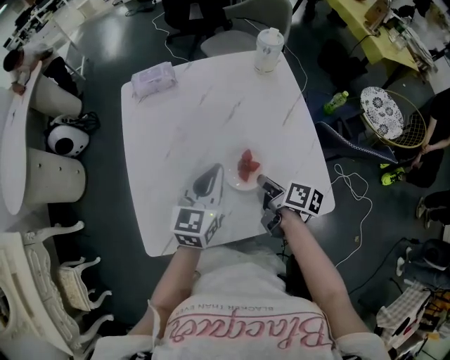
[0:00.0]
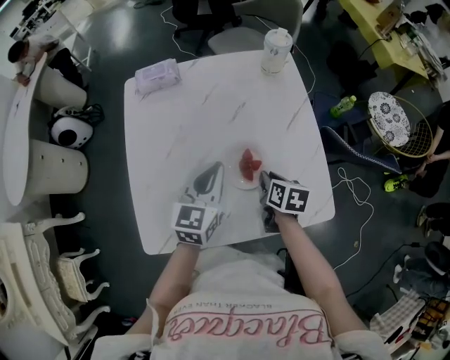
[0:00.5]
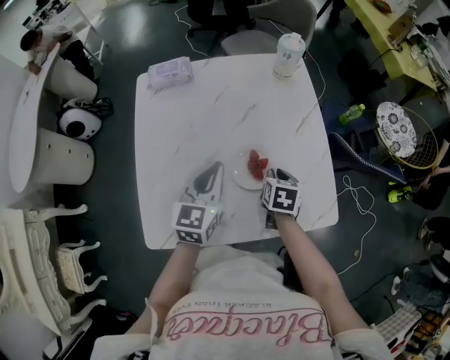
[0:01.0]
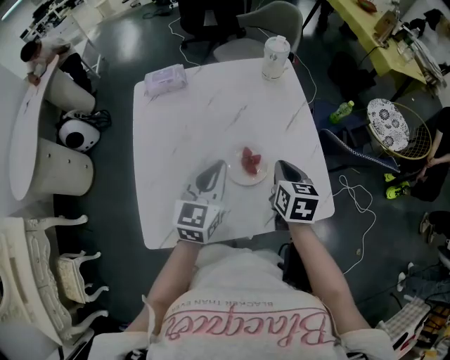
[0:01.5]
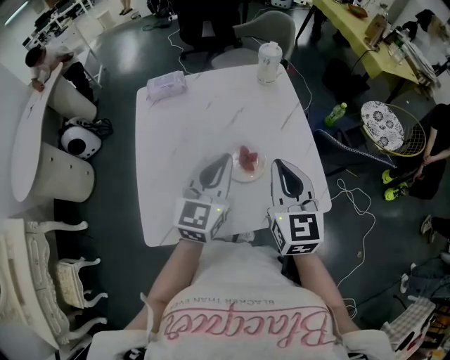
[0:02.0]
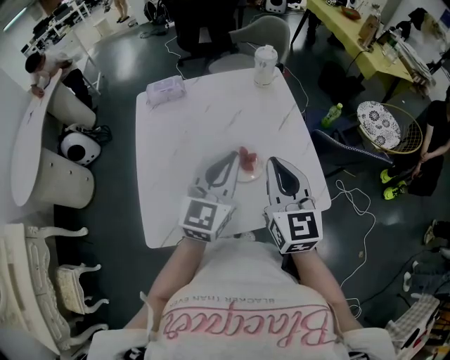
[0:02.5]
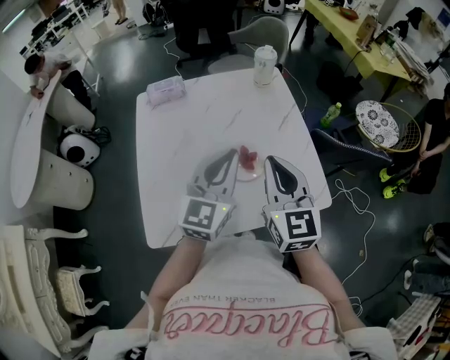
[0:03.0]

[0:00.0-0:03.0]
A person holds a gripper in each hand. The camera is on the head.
0:00.0 to 0:01.5: The right gripper moves upward, approximately 5 cm, and twists roughly 40 degrees counterclockwise, seen from behind.
0:01.5 to 0:03.0: The left gripper goes roughly 10 cm upward; the right gripper moves upward and backward, about 20 cm, and angles its fingers upward, by some 30 degrees.

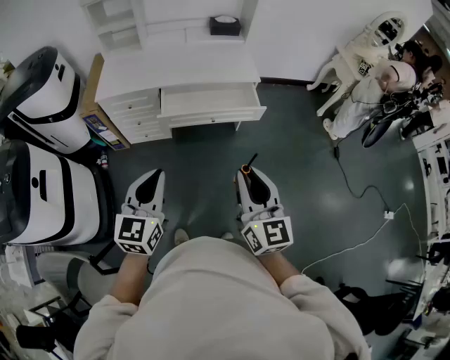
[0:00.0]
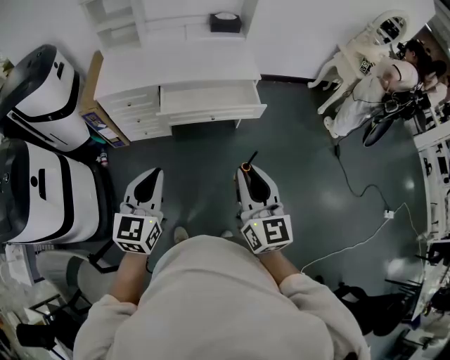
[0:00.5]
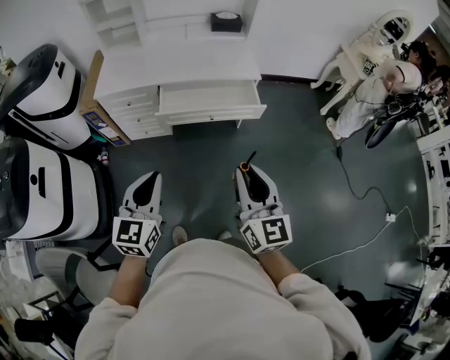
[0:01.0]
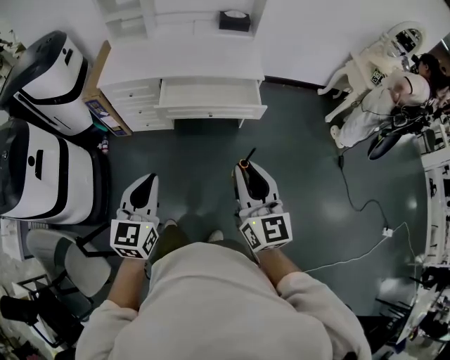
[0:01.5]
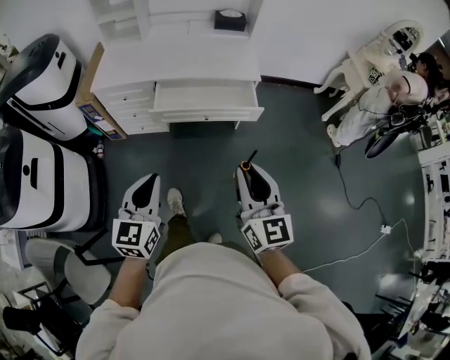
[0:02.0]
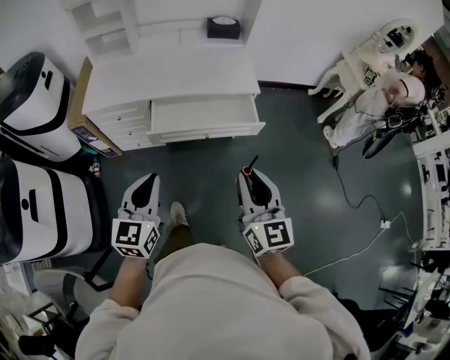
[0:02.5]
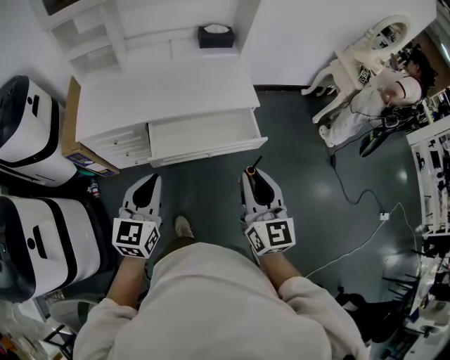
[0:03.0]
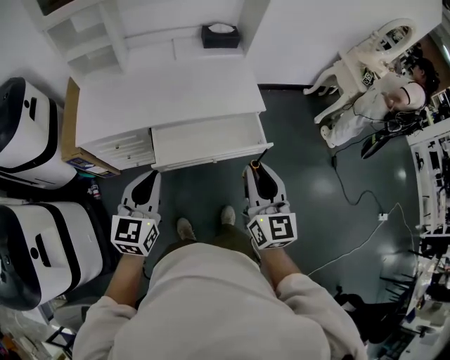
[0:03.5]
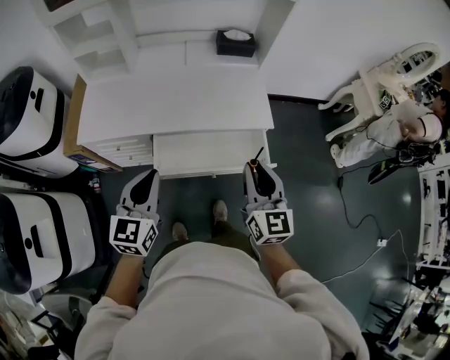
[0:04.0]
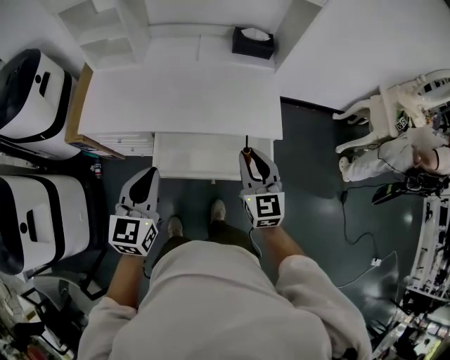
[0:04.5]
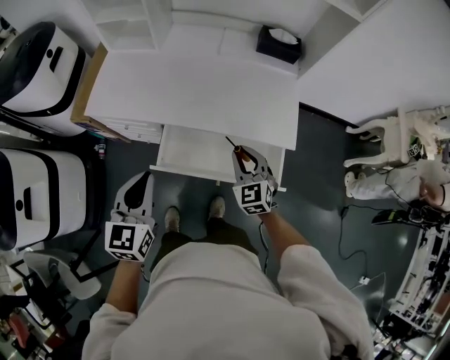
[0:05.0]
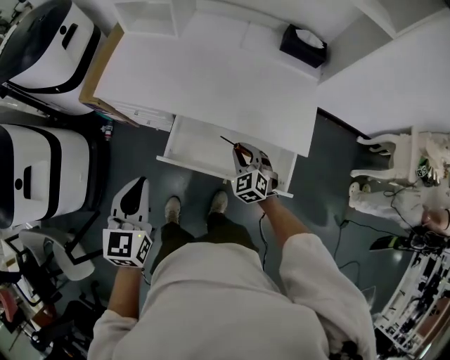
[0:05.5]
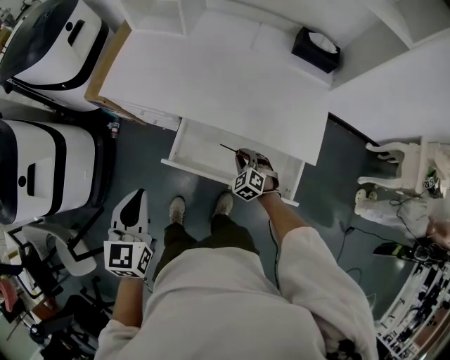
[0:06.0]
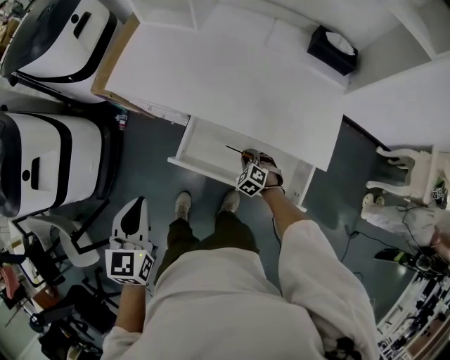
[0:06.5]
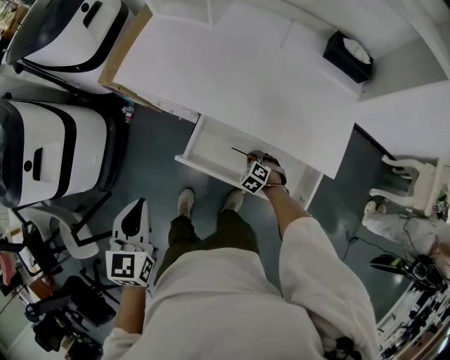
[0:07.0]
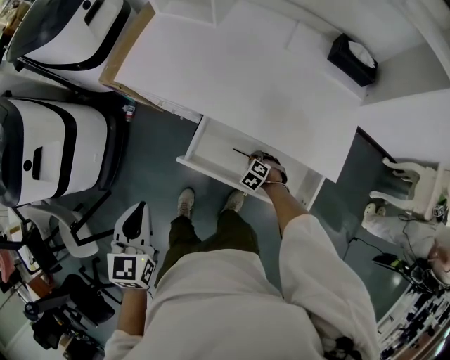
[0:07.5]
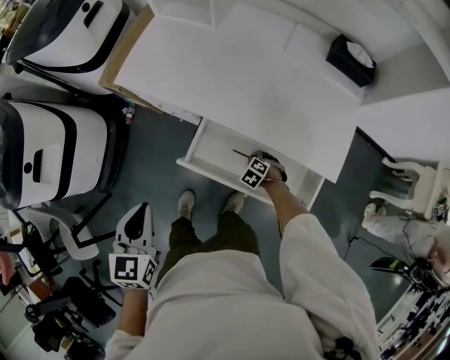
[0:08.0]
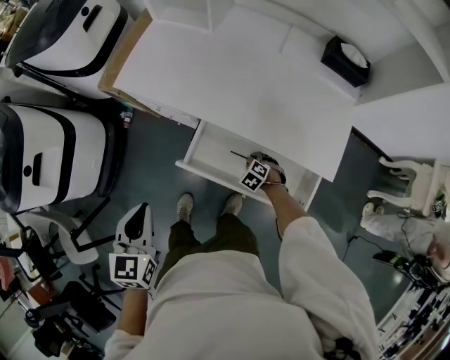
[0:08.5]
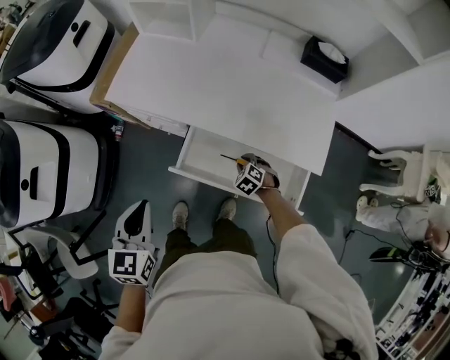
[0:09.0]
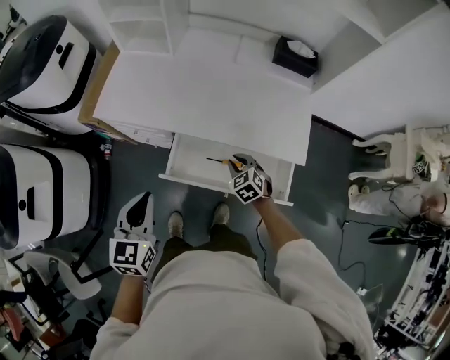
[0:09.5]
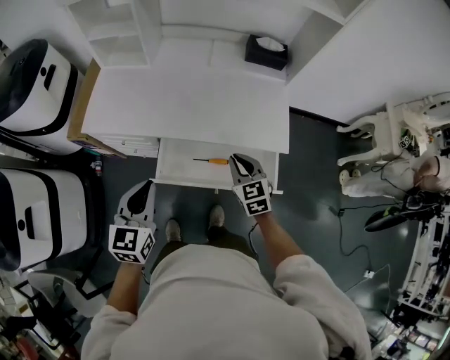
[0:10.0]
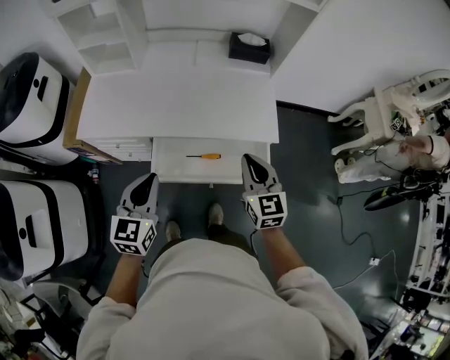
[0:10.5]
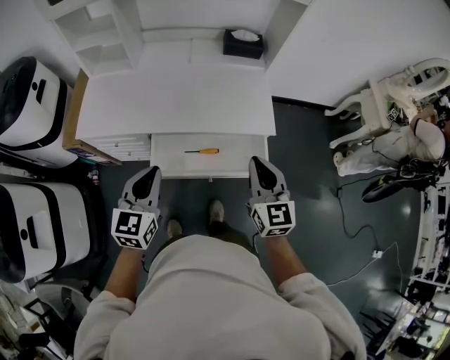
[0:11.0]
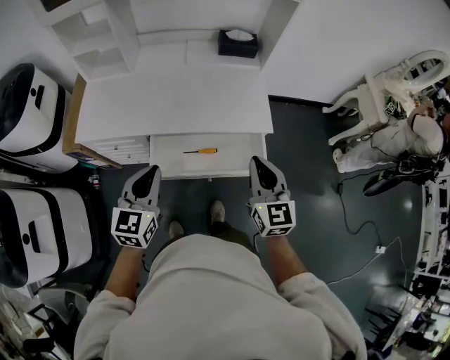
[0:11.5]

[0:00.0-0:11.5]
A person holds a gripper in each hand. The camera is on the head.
0:00.0 to 0:02.0: The left gripper ends up about 5 cm from where it was; the right gripper heads to the right, covering approximately 5 cm.
0:02.0 to 0:04.0: The two grippers go some 35 cm forward.
0:04.0 to 0:06.0: The left gripper travels downward by some 5 cm, and rotates some 30 degrees, while the right gripper shifts roughly 35 cm downward, and points its fingers approximately 50 degrees further downward.
0:06.0 to 0:07.5: The left gripper shifts by some 5 cm. The right gripper goes some 15 cm downward, and turns by some 30 degrees.
0:07.5 to 0:09.5: The left gripper shifts by approximately 5 cm. The right gripper travels upward by approximately 20 cm, and swivels some 40 degrees.
0:09.5 to 0:11.5: The right gripper is displaced upward, backward and to the right by some 35 cm, and points its fingers some 40 degrees further upward, while the left gripper goes roughly 10 cm to the right, and changes its angle by approximately 20 degrees.

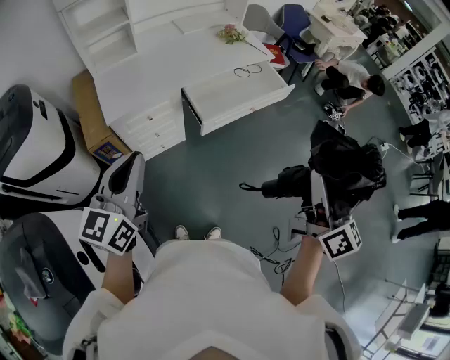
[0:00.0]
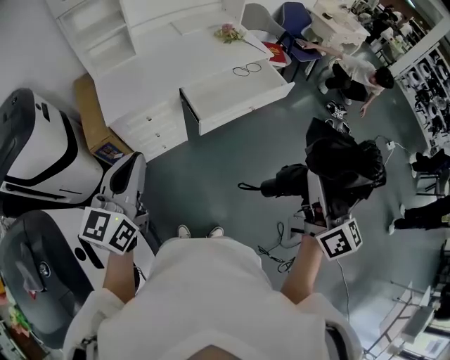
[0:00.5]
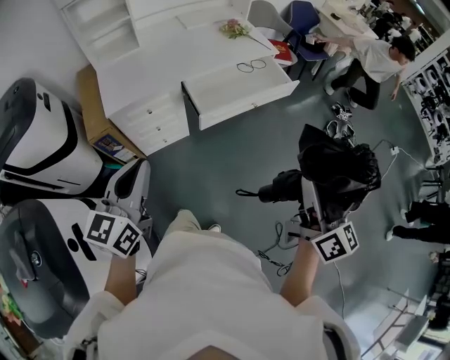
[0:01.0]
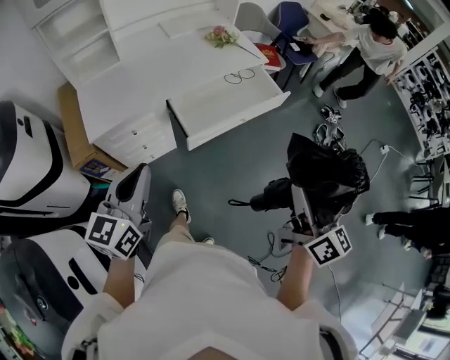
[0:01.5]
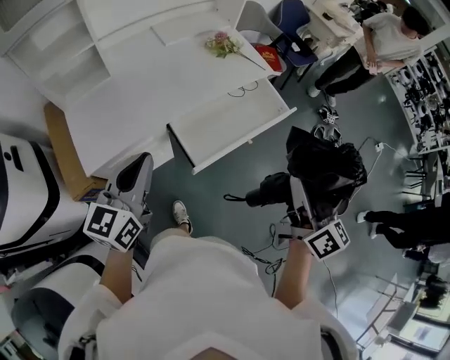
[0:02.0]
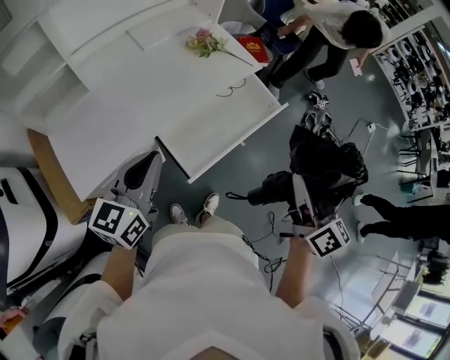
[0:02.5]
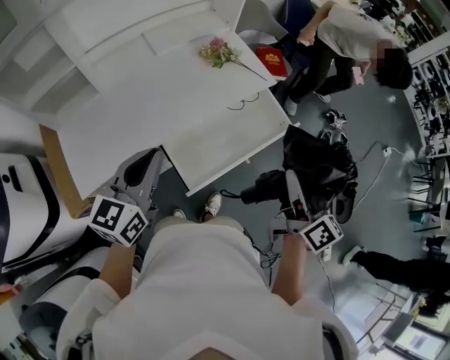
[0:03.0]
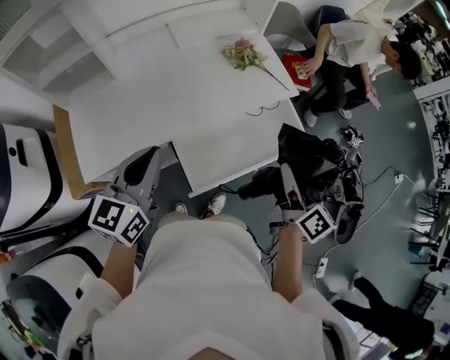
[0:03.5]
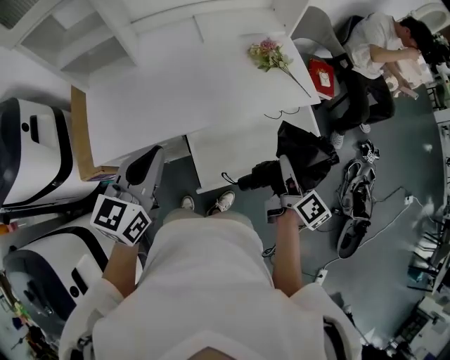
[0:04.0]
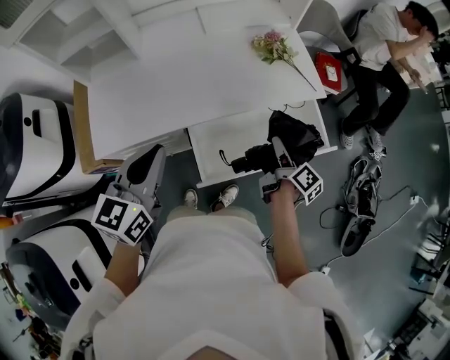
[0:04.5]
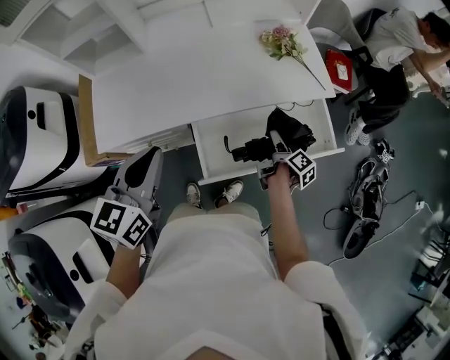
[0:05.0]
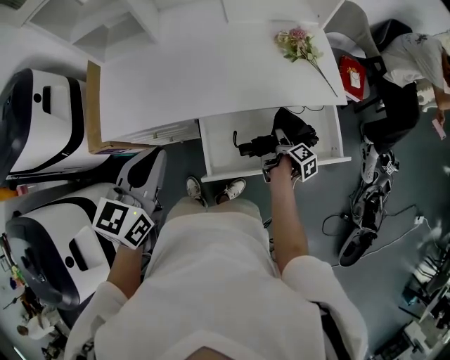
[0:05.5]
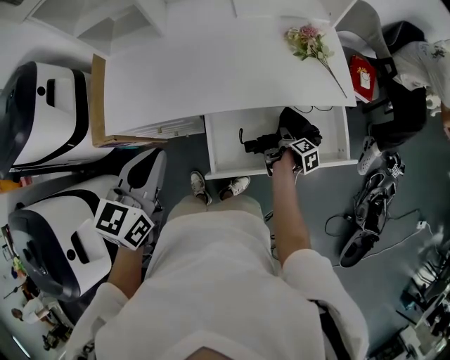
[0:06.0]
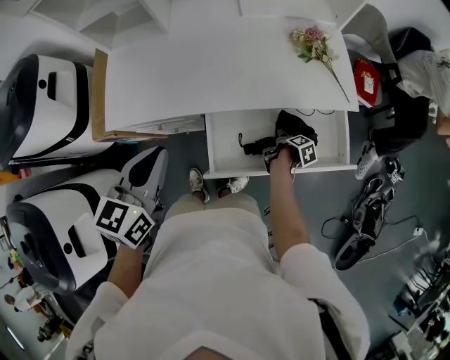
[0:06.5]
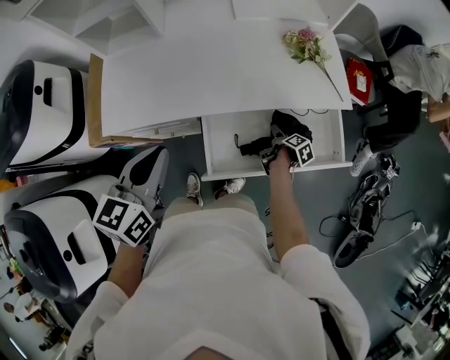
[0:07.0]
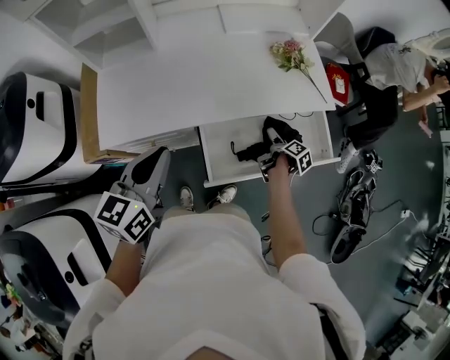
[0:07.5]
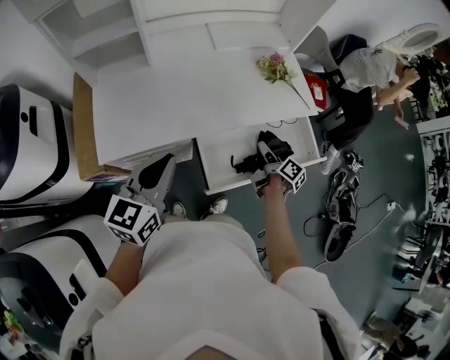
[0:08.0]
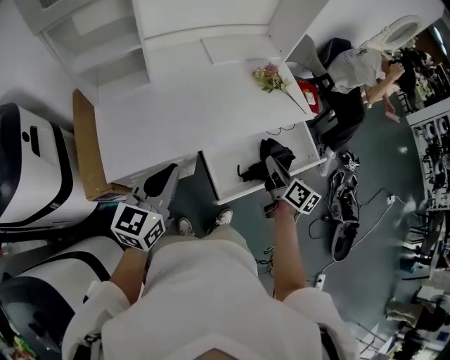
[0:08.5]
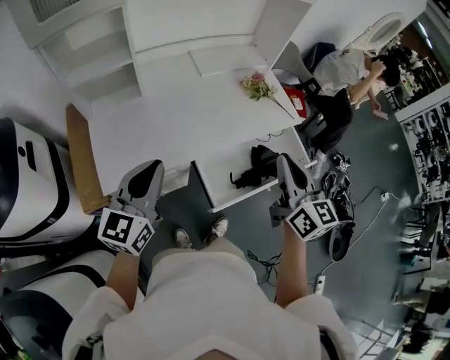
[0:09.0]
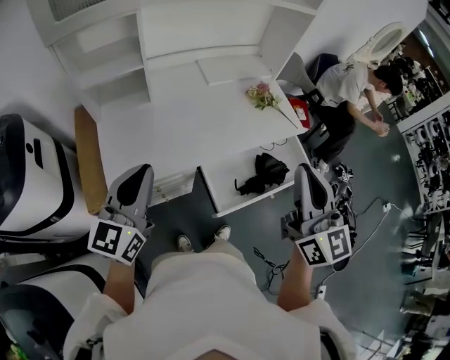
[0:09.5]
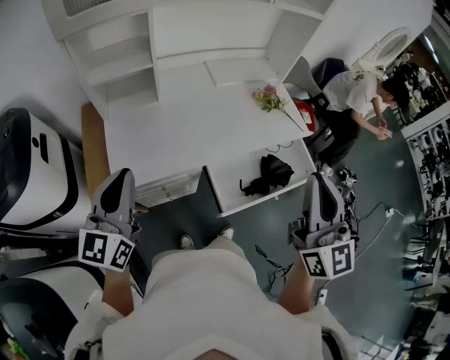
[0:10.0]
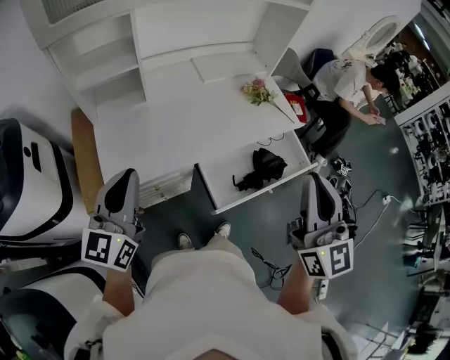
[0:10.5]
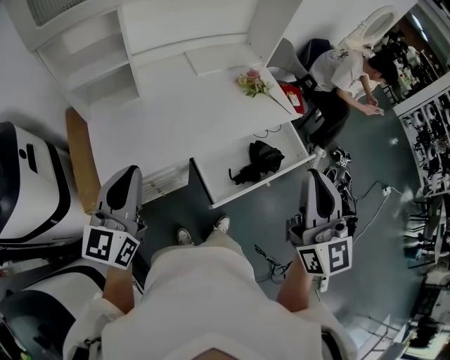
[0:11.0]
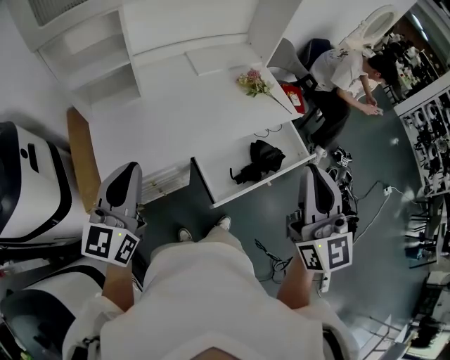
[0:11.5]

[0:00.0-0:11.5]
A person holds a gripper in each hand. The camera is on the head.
0:00.0 to 0:02.0: Both grippers move forward, some 25 cm.
0:02.0 to 0:04.0: The left gripper travels forward by about 15 cm; the right gripper goes roughly 30 cm forward and downward, and rotates approximately 30 degrees.
0:04.0 to 0:06.0: The right gripper goes about 30 cm downward, and points its fingers roughly 40 degrees further downward.
0:06.0 to 0:07.5: The right gripper goes some 5 cm upward.
0:07.5 to 0:09.5: The left gripper travels to the left and upward by about 15 cm, and turns by roughly 20 degrees; the right gripper heads upward, covering some 50 cm, tips its fingers upward by some 50 degrees, and closes up.
